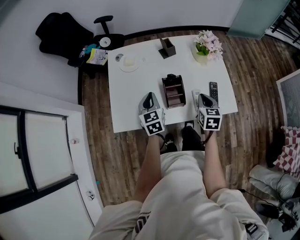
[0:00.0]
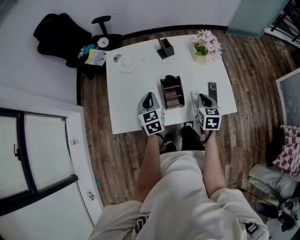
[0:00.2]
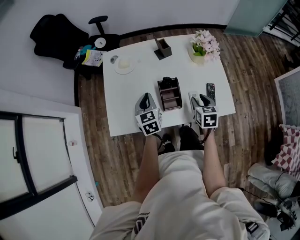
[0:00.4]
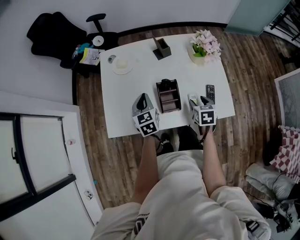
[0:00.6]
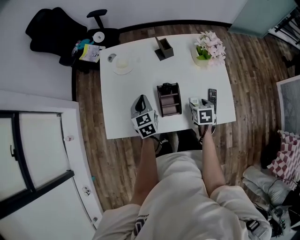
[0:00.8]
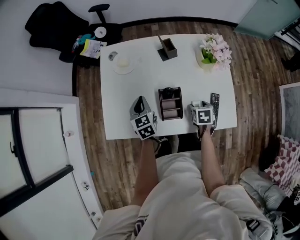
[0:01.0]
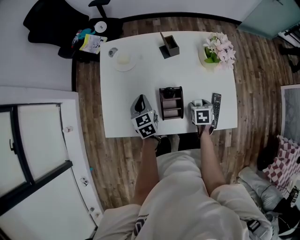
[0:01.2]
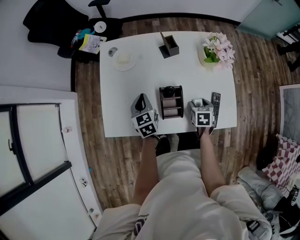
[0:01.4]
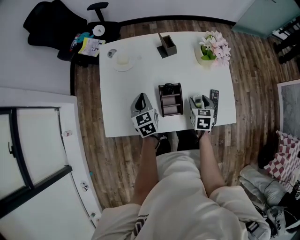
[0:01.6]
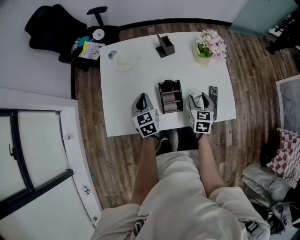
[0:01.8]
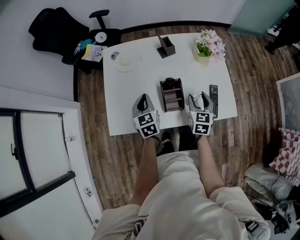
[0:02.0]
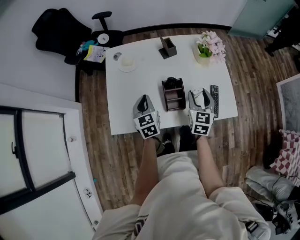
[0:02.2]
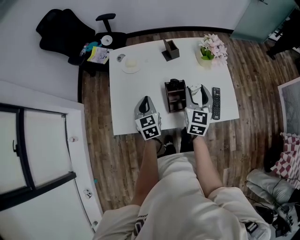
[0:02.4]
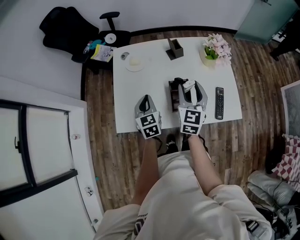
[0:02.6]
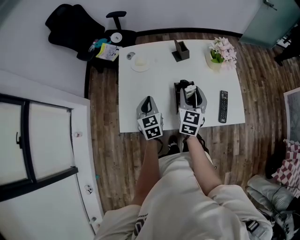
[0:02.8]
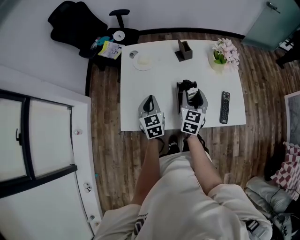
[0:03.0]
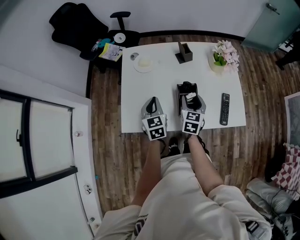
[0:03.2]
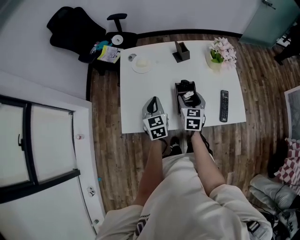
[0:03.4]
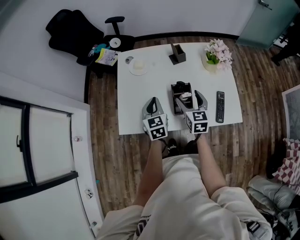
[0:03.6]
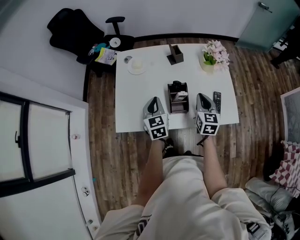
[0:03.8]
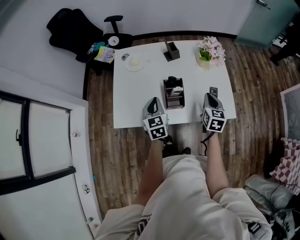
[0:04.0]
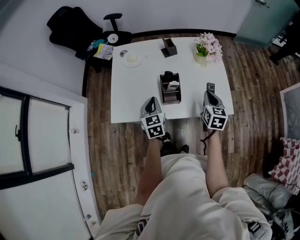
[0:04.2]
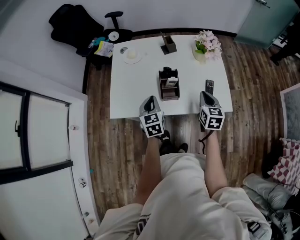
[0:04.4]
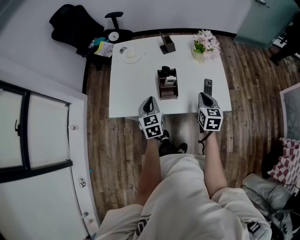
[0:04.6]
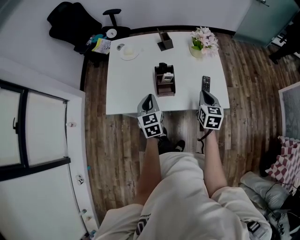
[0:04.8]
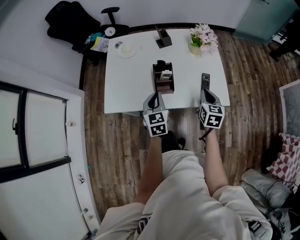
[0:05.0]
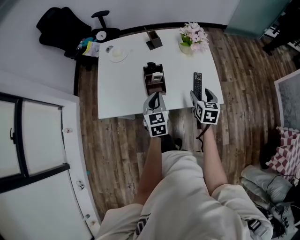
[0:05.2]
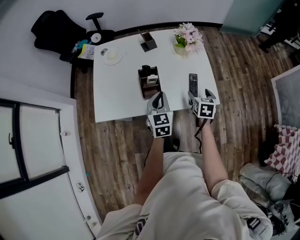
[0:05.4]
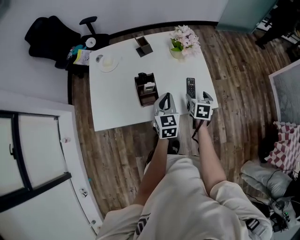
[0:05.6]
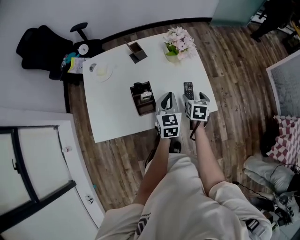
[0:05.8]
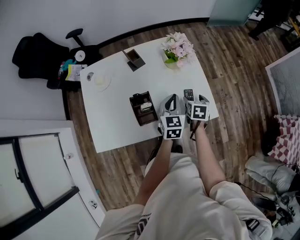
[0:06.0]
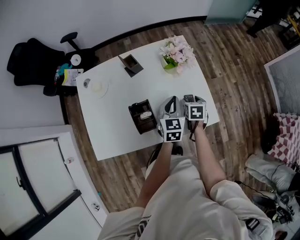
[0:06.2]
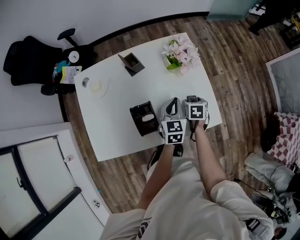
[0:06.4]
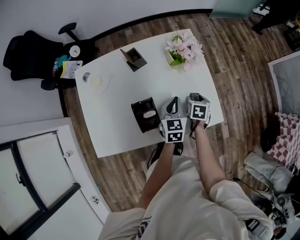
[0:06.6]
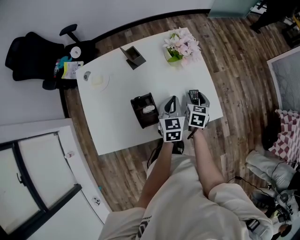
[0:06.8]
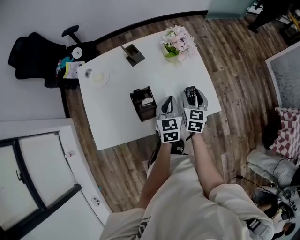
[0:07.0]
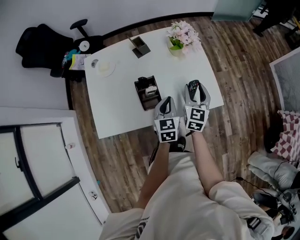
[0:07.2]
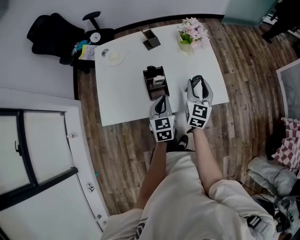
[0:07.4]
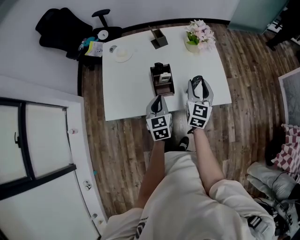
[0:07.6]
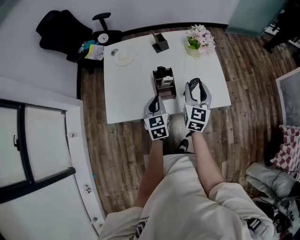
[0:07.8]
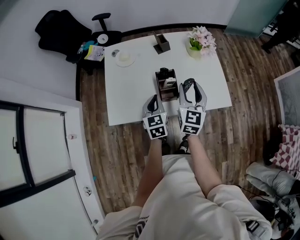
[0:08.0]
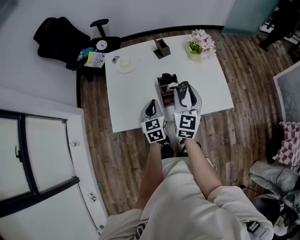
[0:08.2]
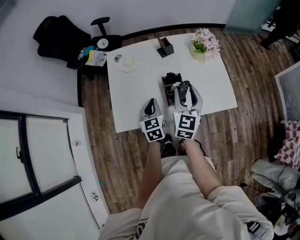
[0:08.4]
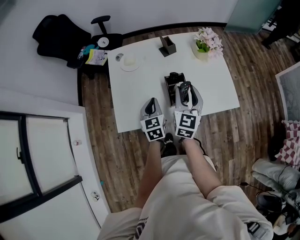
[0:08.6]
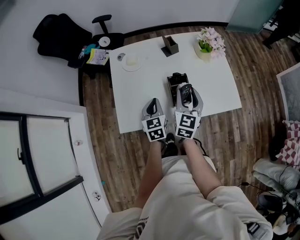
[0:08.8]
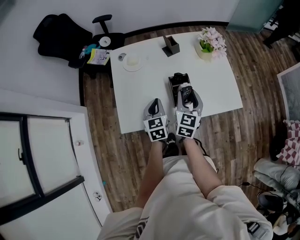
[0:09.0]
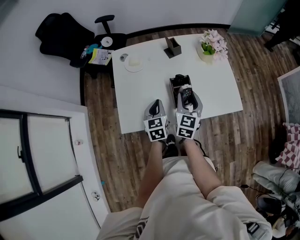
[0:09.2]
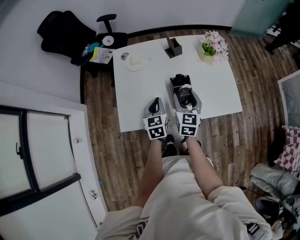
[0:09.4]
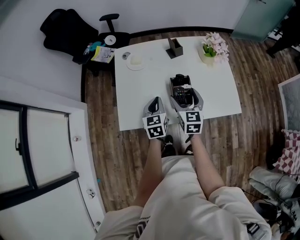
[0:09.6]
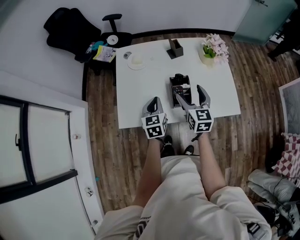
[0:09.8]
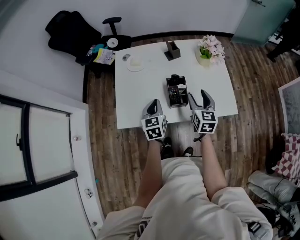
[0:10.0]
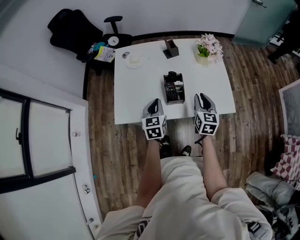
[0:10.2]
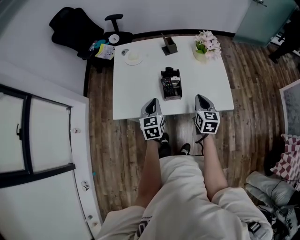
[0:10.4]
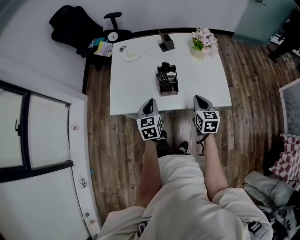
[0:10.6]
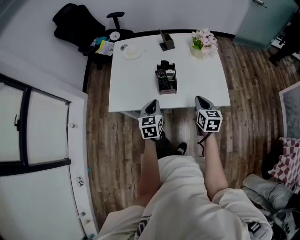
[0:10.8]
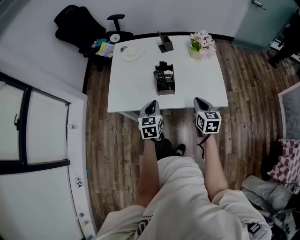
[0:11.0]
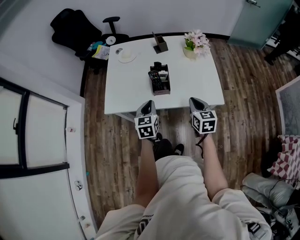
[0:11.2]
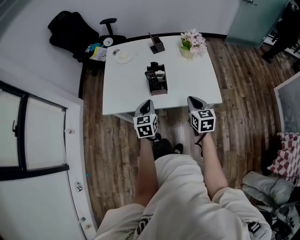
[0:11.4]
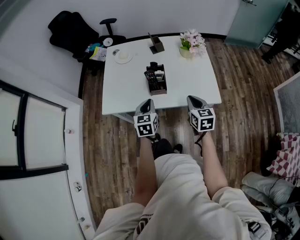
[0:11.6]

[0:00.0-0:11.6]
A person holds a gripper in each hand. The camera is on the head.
0:00.0 to 0:01.4: The left gripper travels forward and downward by about 10 cm. Meanwhile the right gripper is displaced downward and forward by approximately 15 cm, swivels about 30 degrees, and opens its fingers.
0:01.4 to 0:02.8: The left gripper shifts roughly 10 cm backward and upward, while the right gripper is displaced upward and to the left by roughly 25 cm, and tips its fingers upward by some 40 degrees.
0:02.8 to 0:04.4: Both grippers travel together to the right and backward, approximately 15 cm. The right gripper closes.
0:04.4 to 0:05.8: The left gripper moves to the right, some 20 cm, and rotates some 20 degrees. The right gripper travels to the right, downward and forward by approximately 15 cm, rotates about 20 degrees, and opens up.
0:05.8 to 0:07.2: The left gripper travels forward and back again, about 10 cm each way. The right gripper is displaced upward by approximately 10 cm, angles its fingers upward, by approximately 30 degrees, and closes its fingers.
0:07.2 to 0:08.8: The grippers both shift to the left by roughly 20 cm.
0:08.8 to 0:10.2: The right gripper travels to the right by roughly 10 cm, and opens and closes again; the left gripper changes place by some 5 cm.
0:10.2 to 0:11.6: The left gripper heads backward and to the right, covering roughly 10 cm, while the right gripper goes approximately 10 cm backward.

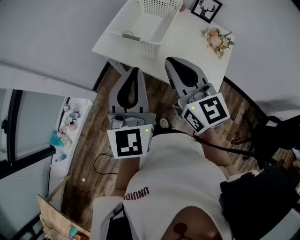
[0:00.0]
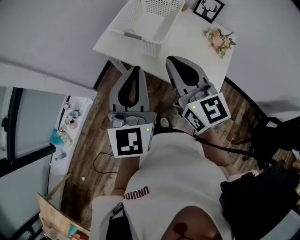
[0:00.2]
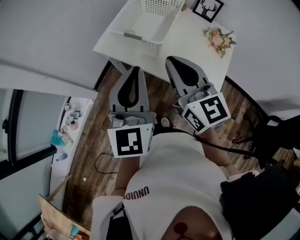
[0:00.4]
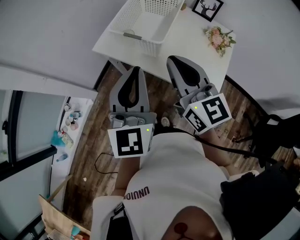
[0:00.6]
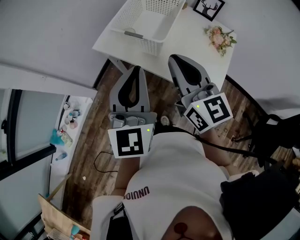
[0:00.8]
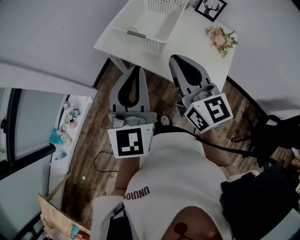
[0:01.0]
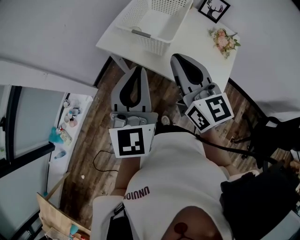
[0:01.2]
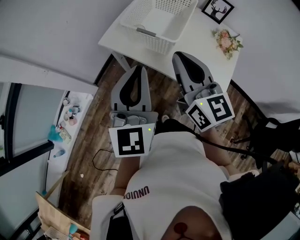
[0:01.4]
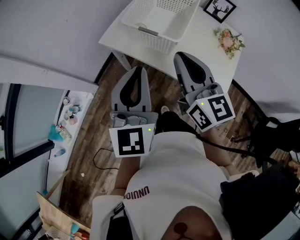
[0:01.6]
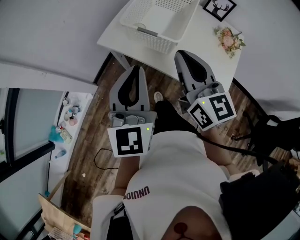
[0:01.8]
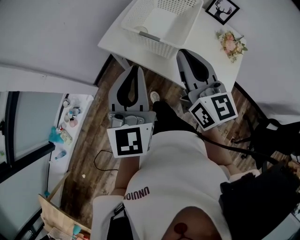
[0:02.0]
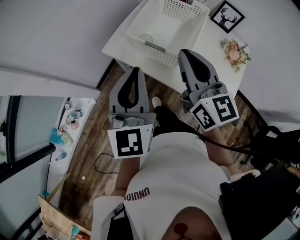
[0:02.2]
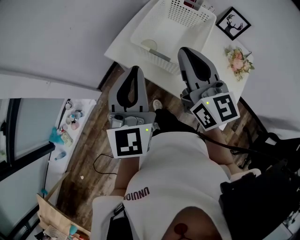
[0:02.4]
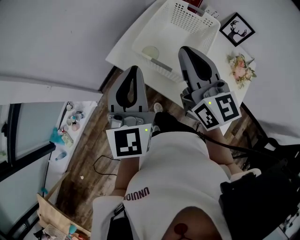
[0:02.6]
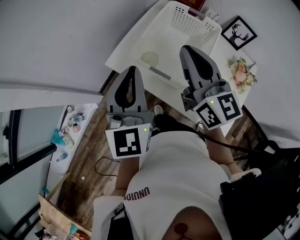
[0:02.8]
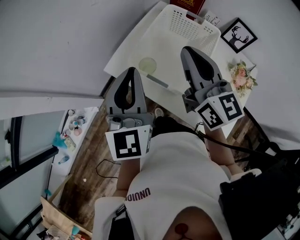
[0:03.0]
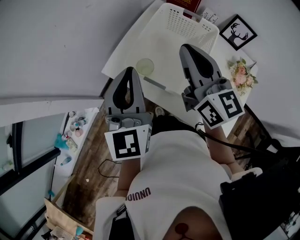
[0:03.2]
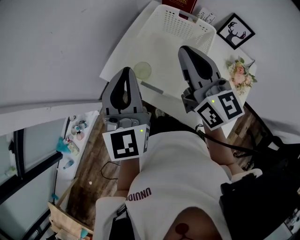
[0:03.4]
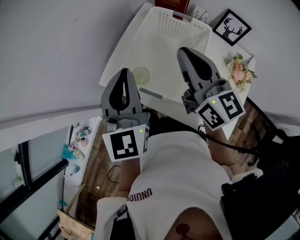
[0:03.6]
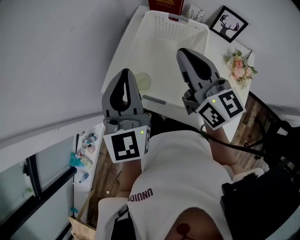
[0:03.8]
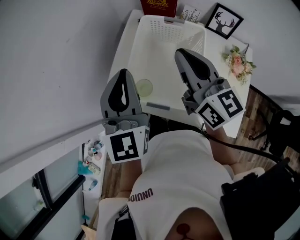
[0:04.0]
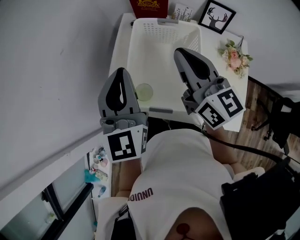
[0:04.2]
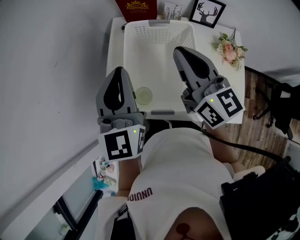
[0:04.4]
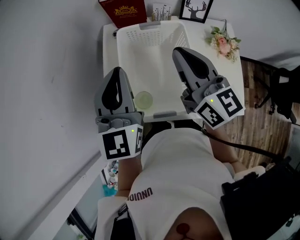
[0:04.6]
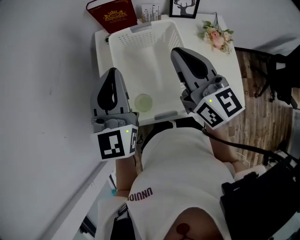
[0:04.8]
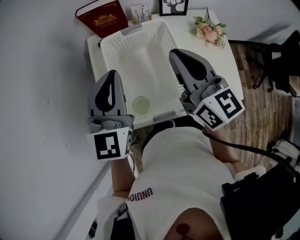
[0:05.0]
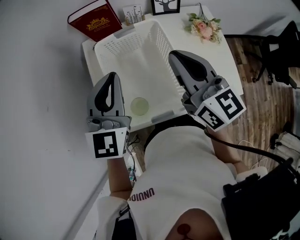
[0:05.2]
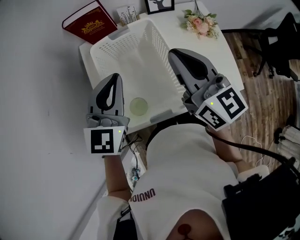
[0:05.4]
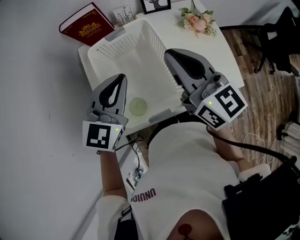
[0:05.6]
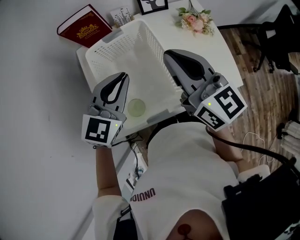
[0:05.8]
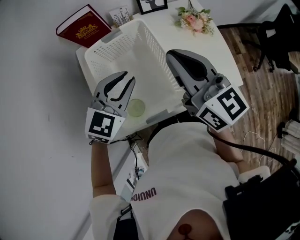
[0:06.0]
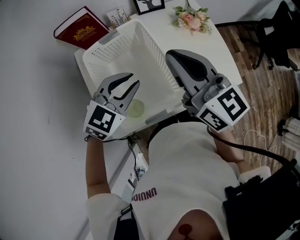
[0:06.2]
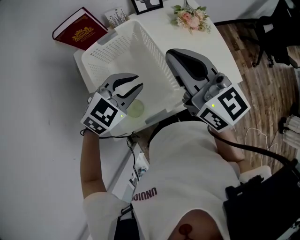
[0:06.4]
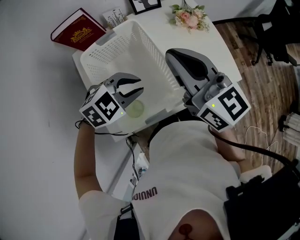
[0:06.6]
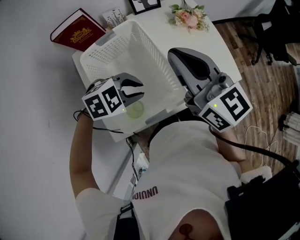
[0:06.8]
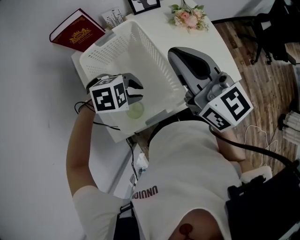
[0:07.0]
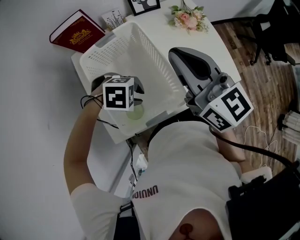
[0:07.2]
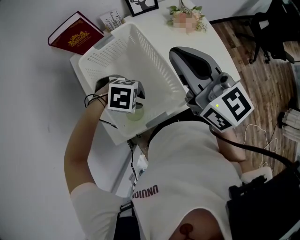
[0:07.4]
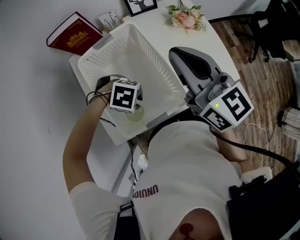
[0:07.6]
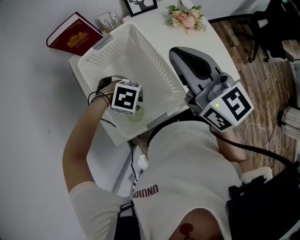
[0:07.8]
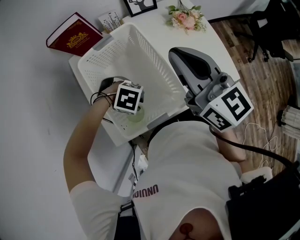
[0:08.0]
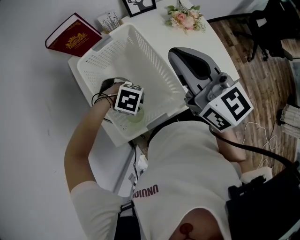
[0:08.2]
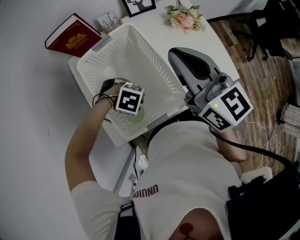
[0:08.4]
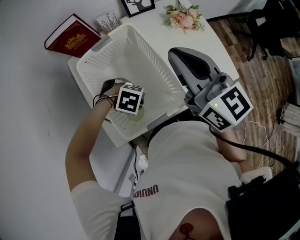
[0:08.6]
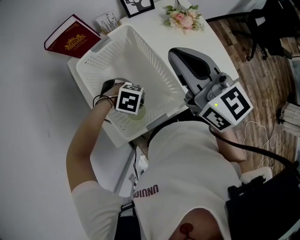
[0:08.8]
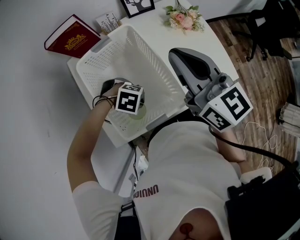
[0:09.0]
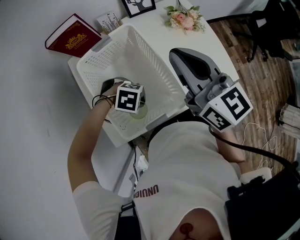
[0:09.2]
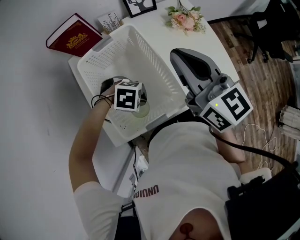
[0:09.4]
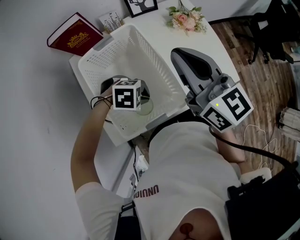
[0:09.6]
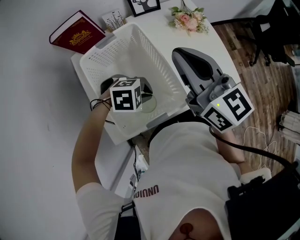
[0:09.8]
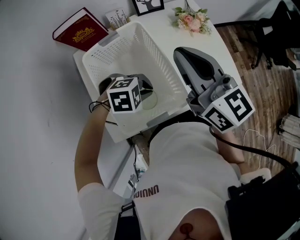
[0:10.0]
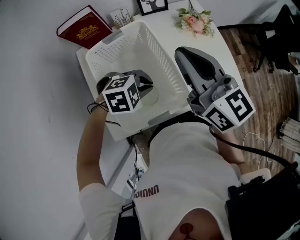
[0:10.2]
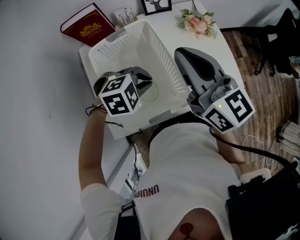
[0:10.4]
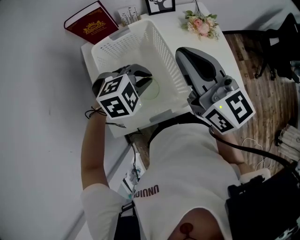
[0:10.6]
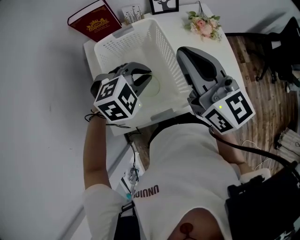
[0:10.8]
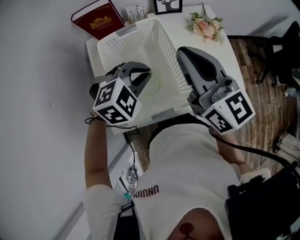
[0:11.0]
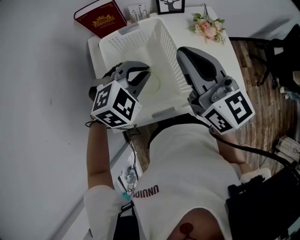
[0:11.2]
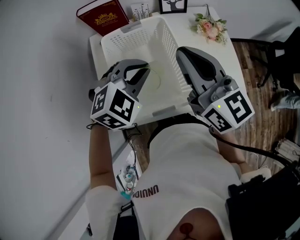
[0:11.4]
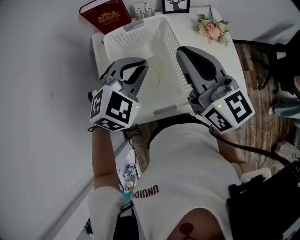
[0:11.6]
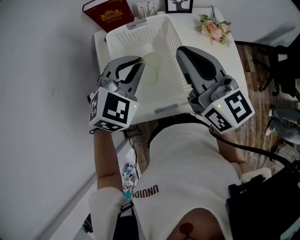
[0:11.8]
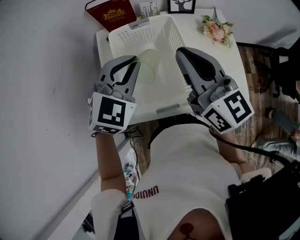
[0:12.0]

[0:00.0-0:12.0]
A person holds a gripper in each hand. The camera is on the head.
0:00.0 to 0:01.6: The left gripper is displaced to the left by roughly 5 cm.
0:01.6 to 0:03.0: Both grippers travel together forward, roughly 20 cm.
0:03.0 to 0:04.4: The right gripper moves forward, roughly 5 cm, and swivels roughly 20 degrees; the left gripper heads forward, covering about 15 cm, and swivels approximately 30 degrees.
0:04.4 to 0:06.0: The left gripper heads downward, covering some 10 cm, and rotates roughly 70 degrees. Meanwhile the right gripper moves some 10 cm.
0:06.0 to 0:07.6: The left gripper heads downward, covering some 15 cm, and tilts its fingers some 40 degrees downward.
0:07.6 to 0:09.0: The grippers stay close to where they were, moving slightly.
0:09.0 to 0:10.4: The left gripper shifts some 10 cm upward, and turns by some 40 degrees.
0:10.4 to 0:12.0: The left gripper travels upward by about 15 cm, and angles its fingers upward, by approximately 30 degrees. Meanwhile the right gripper moves roughly 5 cm.
